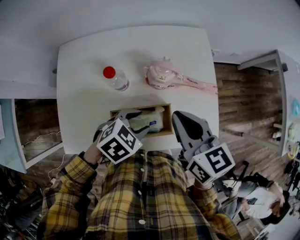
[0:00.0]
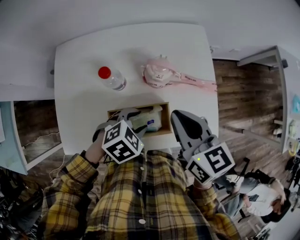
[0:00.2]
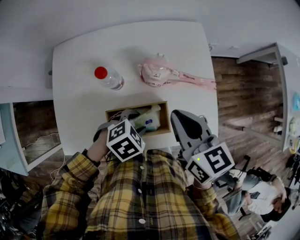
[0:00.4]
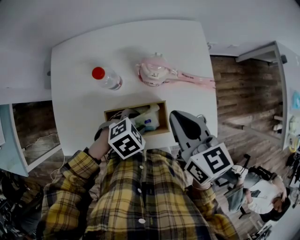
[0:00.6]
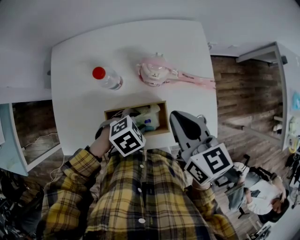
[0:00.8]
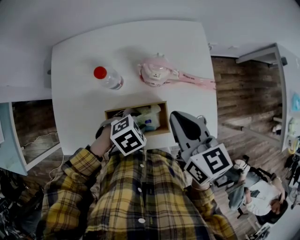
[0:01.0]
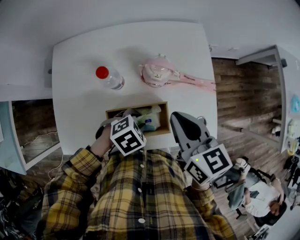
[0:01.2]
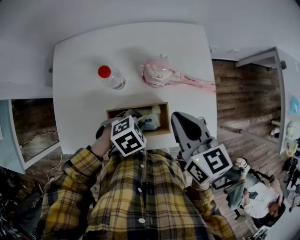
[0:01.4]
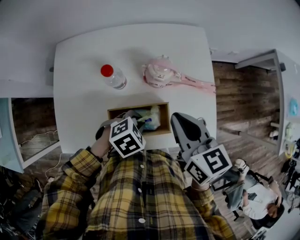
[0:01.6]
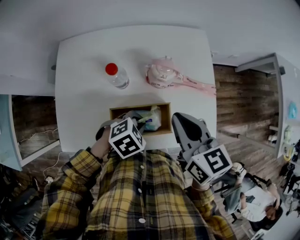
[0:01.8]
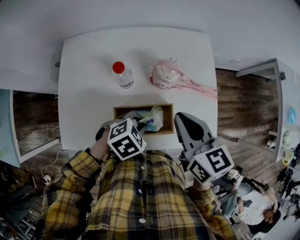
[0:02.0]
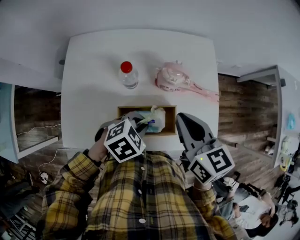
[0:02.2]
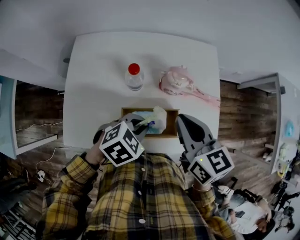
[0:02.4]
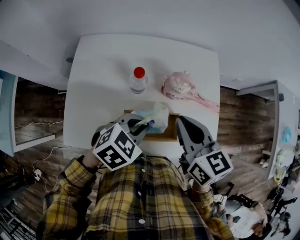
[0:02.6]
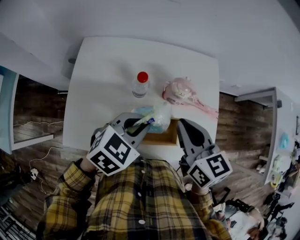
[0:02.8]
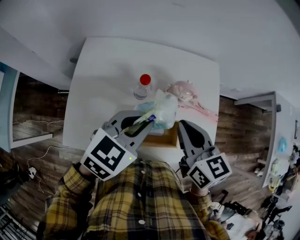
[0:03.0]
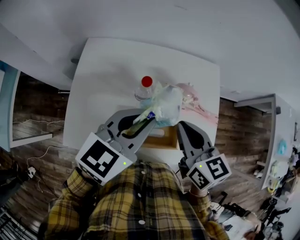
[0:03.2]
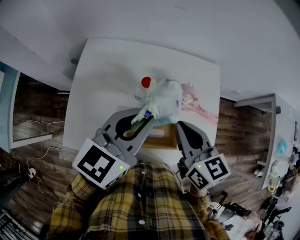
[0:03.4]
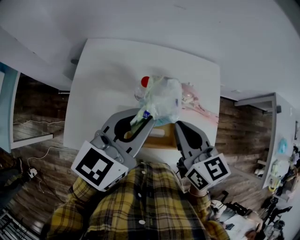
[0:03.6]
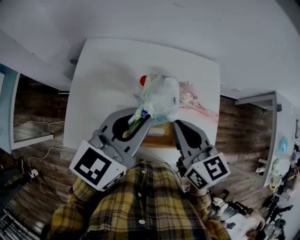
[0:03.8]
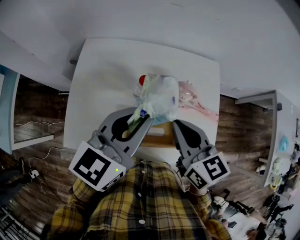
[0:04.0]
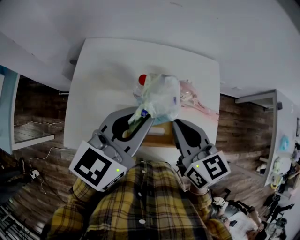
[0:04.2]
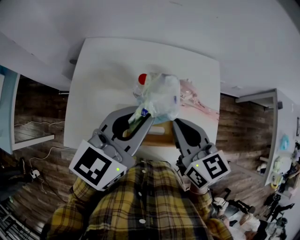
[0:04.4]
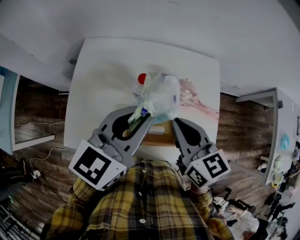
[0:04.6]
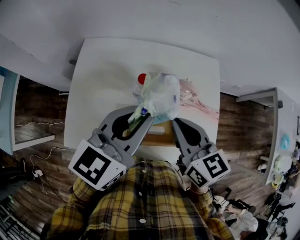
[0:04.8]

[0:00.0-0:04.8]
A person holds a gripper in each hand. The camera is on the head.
0:00.0 to 0:01.6: The left gripper goes approximately 5 cm downward, and closes up.
0:01.6 to 0:03.2: The right gripper is displaced to the left by about 5 cm. Meanwhile the left gripper travels upward by about 25 cm, and tips its fingers upward by approximately 50 degrees.
0:03.2 to 0:04.8: The grippers make only small movements.

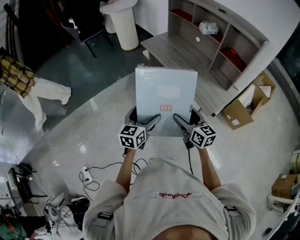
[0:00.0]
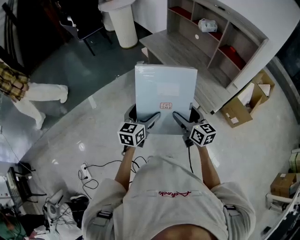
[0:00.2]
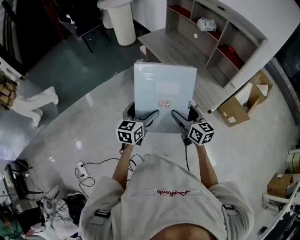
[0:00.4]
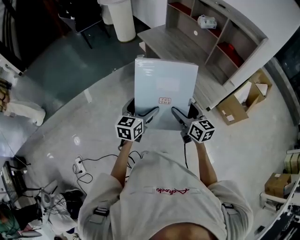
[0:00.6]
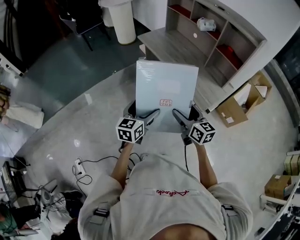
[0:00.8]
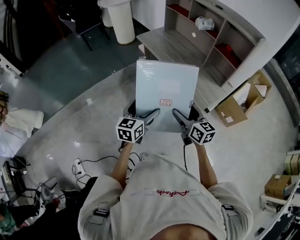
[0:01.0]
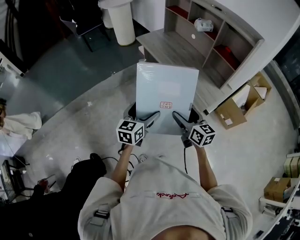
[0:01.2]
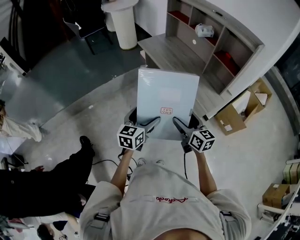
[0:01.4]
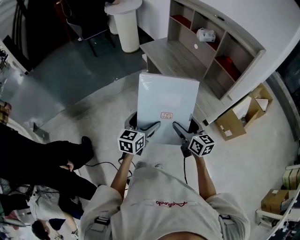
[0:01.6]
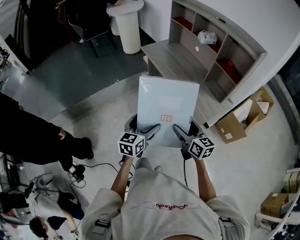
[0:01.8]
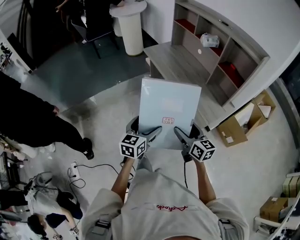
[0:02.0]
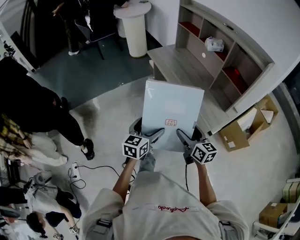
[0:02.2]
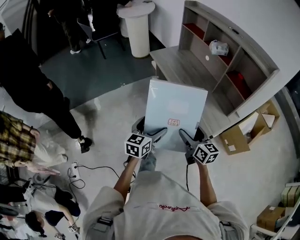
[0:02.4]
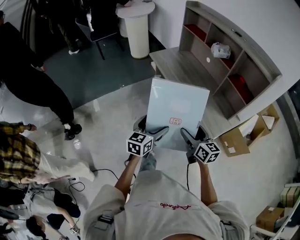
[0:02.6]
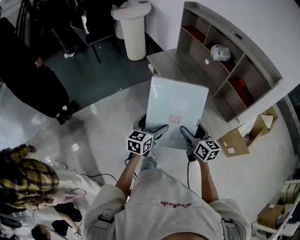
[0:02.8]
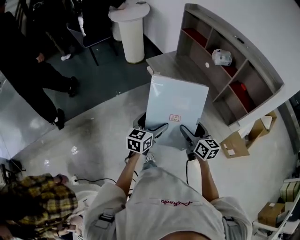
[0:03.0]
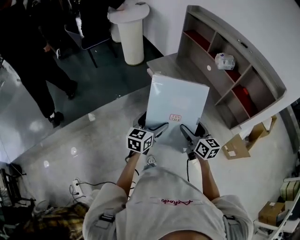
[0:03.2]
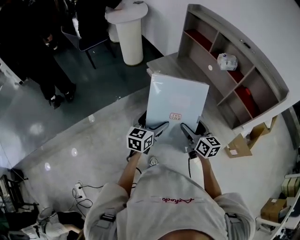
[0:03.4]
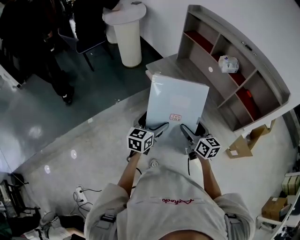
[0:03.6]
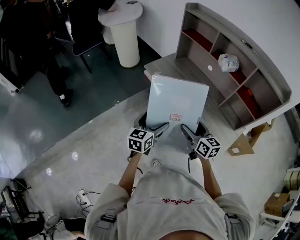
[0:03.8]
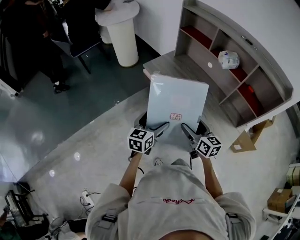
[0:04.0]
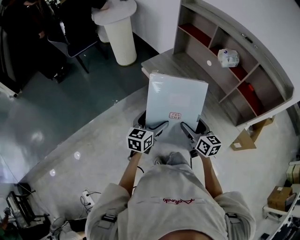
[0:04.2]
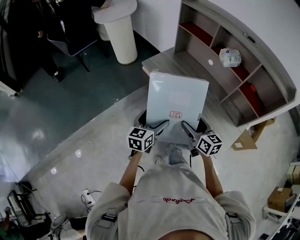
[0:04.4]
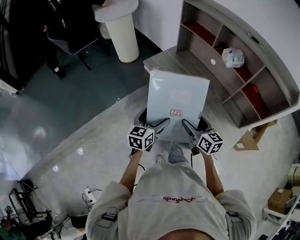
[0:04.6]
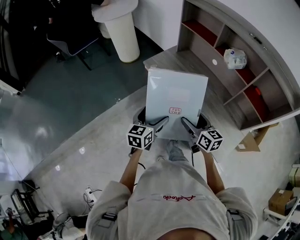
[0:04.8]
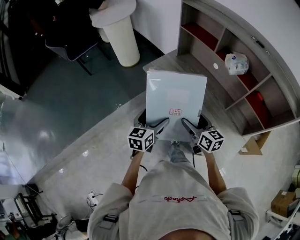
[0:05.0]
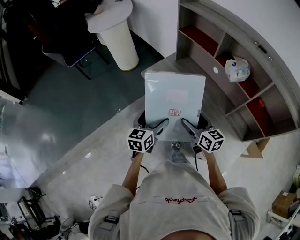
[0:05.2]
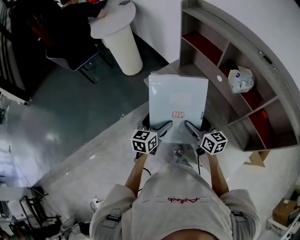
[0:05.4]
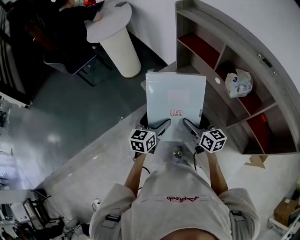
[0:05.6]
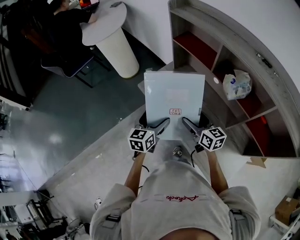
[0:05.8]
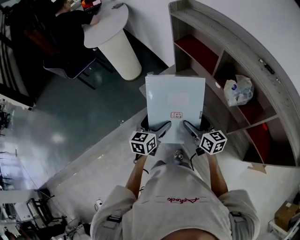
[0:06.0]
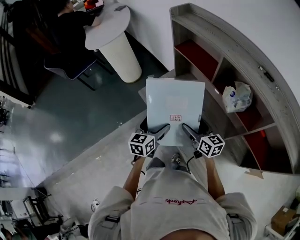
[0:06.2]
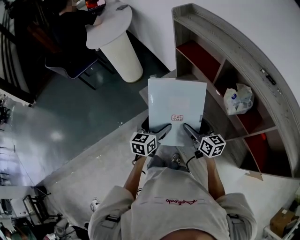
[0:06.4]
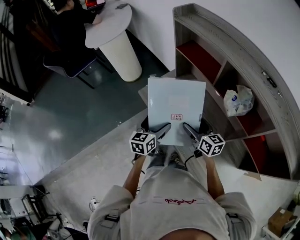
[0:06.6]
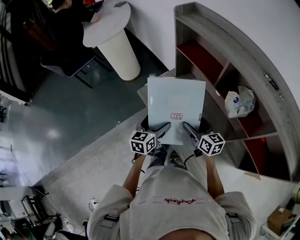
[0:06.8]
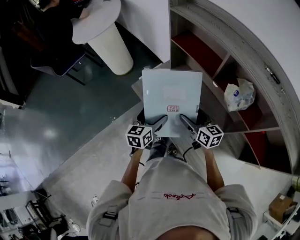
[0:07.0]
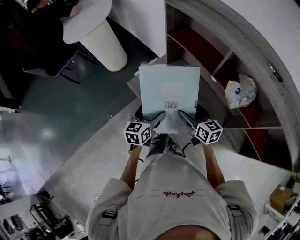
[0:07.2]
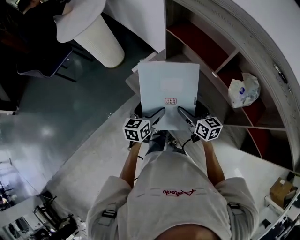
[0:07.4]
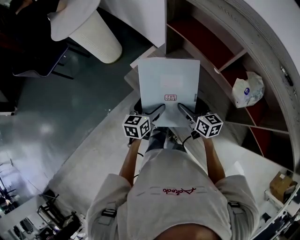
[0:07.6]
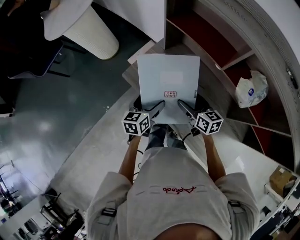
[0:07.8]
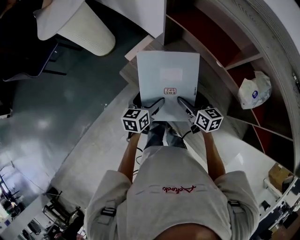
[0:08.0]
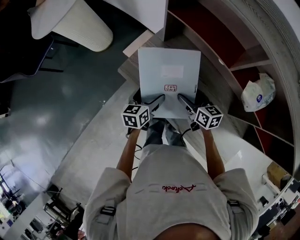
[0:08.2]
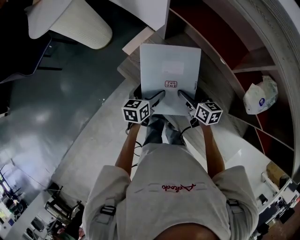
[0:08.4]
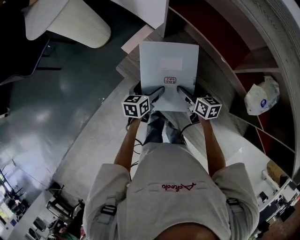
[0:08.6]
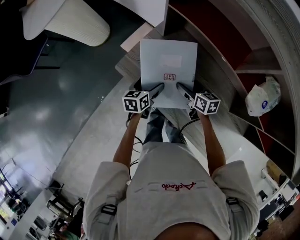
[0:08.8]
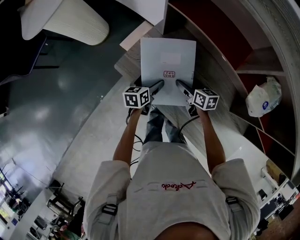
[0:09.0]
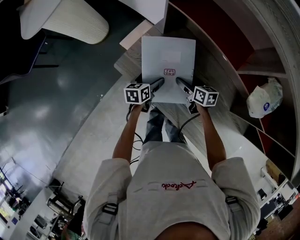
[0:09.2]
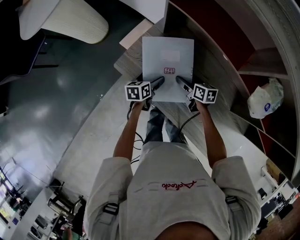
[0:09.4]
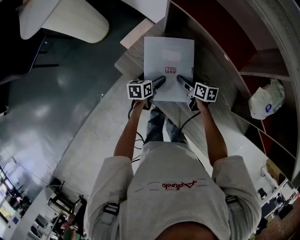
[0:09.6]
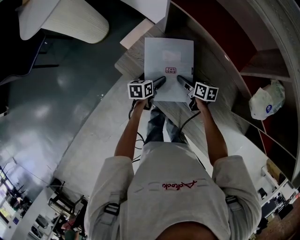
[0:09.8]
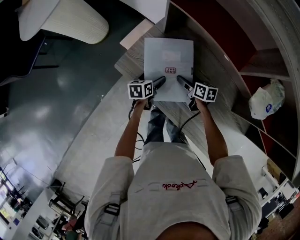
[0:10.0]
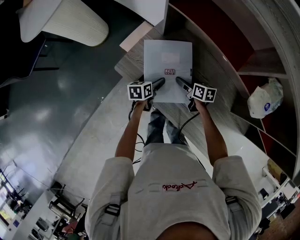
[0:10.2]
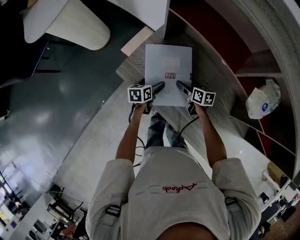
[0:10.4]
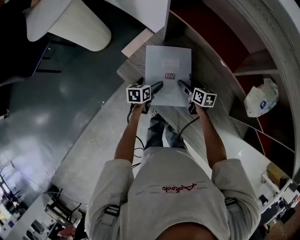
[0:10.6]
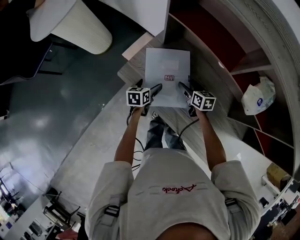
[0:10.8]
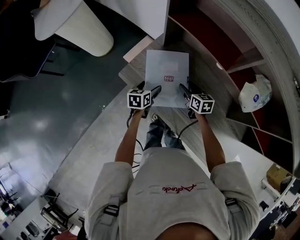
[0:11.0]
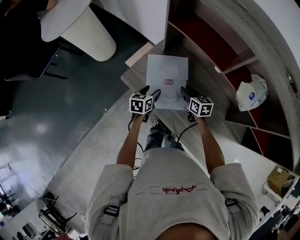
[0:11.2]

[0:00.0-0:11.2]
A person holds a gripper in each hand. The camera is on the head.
0:00.0 to 0:01.6: Both grippers move to the right, roughly 5 cm.
0:01.6 to 0:03.2: The grippers both shift forward by roughly 25 cm.
0:03.2 to 0:04.8: The grippers both shift forward by approximately 15 cm.
0:04.8 to 0:06.4: The right gripper goes some 25 cm forward, while the left gripper goes some 25 cm forward and to the right.
0:06.4 to 0:08.0: Both grippers move forward and downward, some 15 cm.
0:08.0 to 0:09.6: Both grippers move downward and forward, some 20 cm. The right gripper turns by some 20 degrees.
0:09.6 to 0:11.2: The grippers both shift upward by approximately 10 cm. The left gripper closes its fingers; the right gripper changes its angle by some 20 degrees, and closes its fingers.

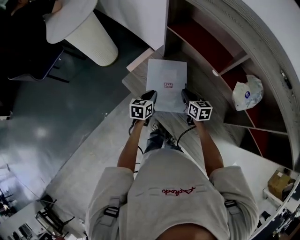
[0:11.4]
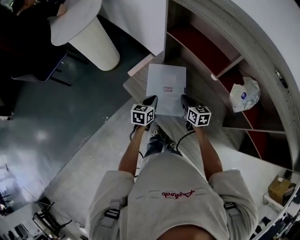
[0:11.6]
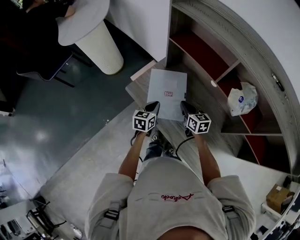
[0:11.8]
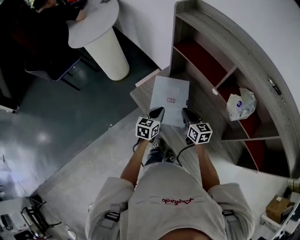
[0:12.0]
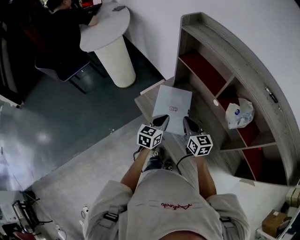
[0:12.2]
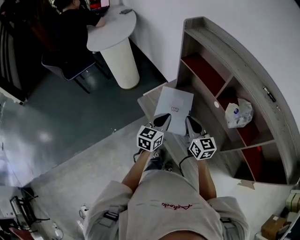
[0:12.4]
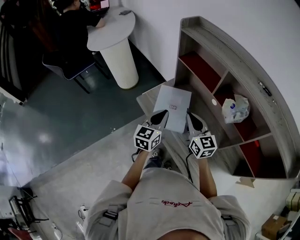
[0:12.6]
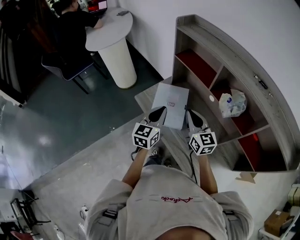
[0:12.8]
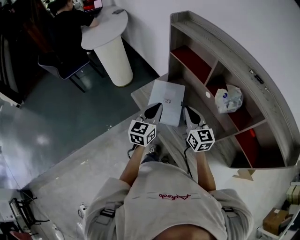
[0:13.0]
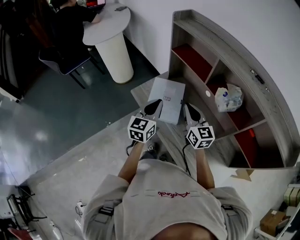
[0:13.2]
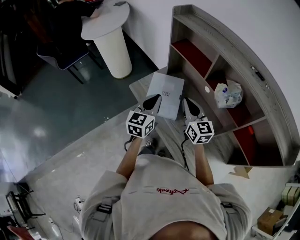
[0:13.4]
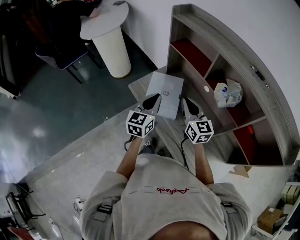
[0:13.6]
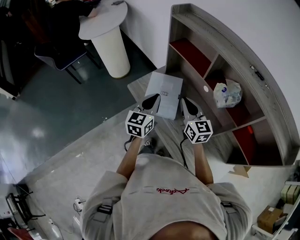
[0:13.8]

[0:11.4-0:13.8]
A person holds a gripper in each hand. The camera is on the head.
0:11.4 to 0:12.6: Both grippers move upward and backward, approximately 25 cm. The right gripper swivels about 30 degrees. The left gripper rotates some 30 degrees.
0:12.6 to 0:13.8: There are only small adjustments of the grippers.

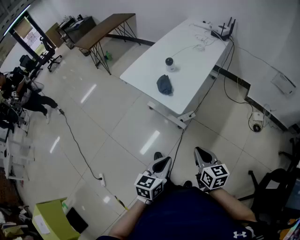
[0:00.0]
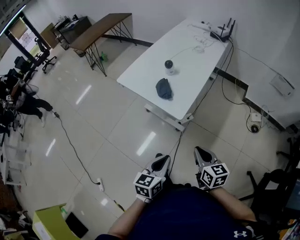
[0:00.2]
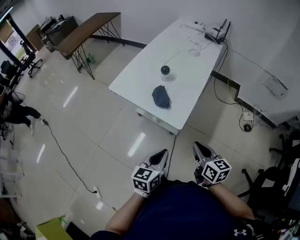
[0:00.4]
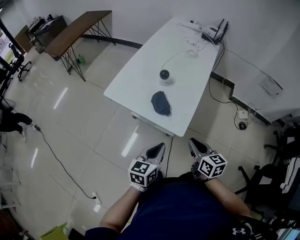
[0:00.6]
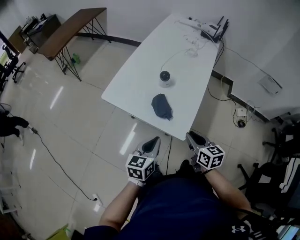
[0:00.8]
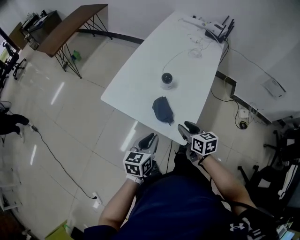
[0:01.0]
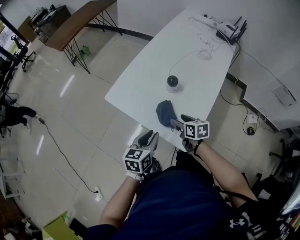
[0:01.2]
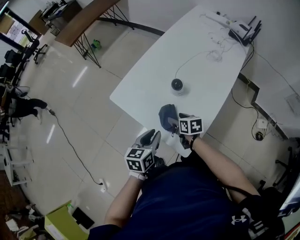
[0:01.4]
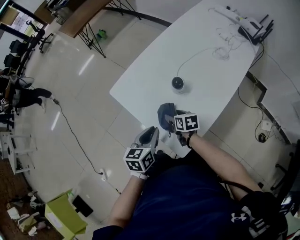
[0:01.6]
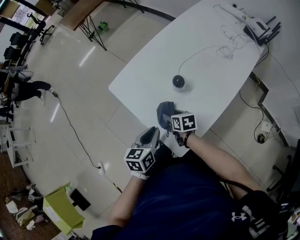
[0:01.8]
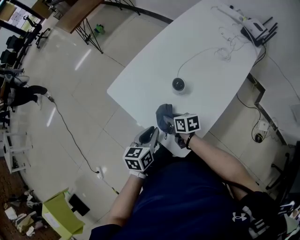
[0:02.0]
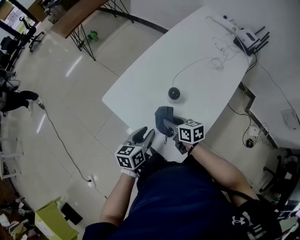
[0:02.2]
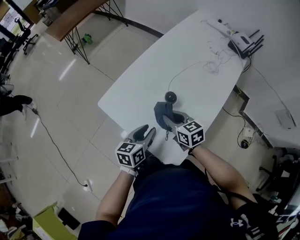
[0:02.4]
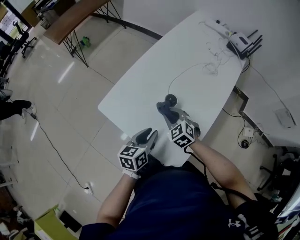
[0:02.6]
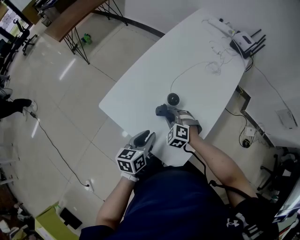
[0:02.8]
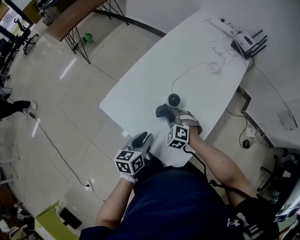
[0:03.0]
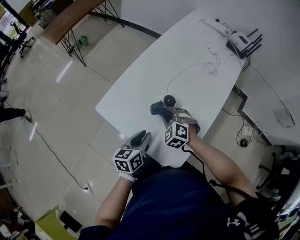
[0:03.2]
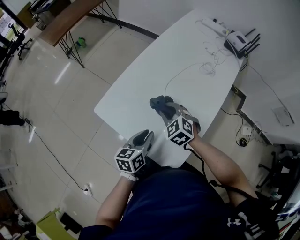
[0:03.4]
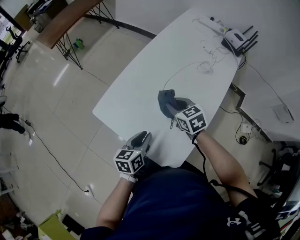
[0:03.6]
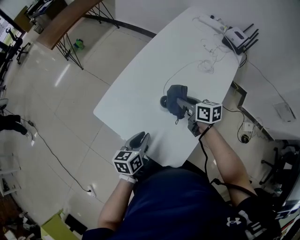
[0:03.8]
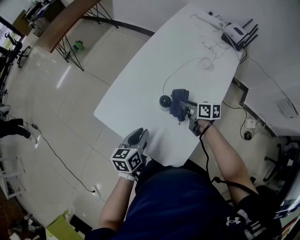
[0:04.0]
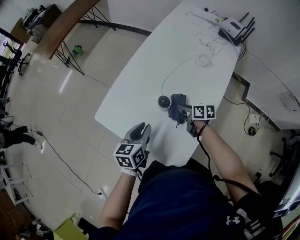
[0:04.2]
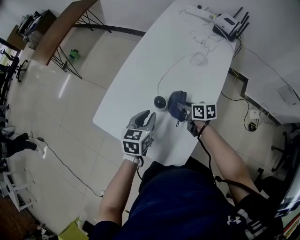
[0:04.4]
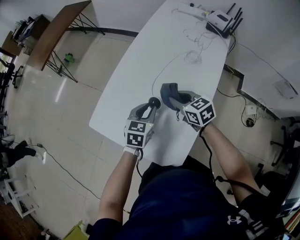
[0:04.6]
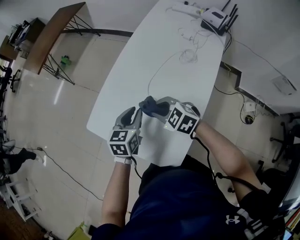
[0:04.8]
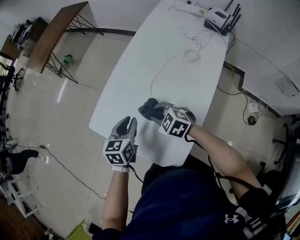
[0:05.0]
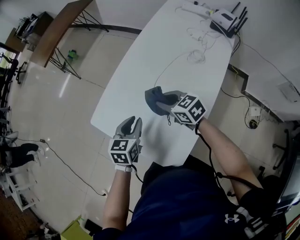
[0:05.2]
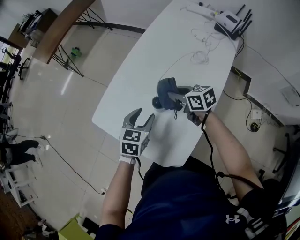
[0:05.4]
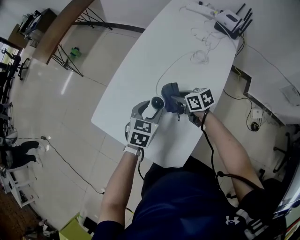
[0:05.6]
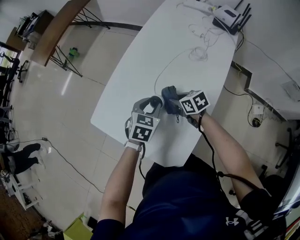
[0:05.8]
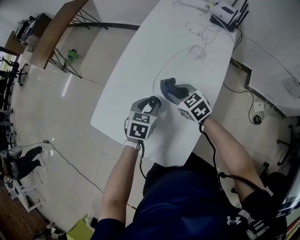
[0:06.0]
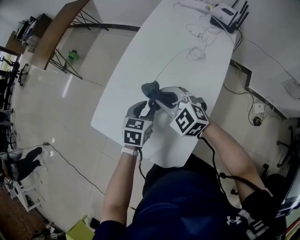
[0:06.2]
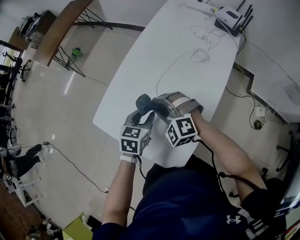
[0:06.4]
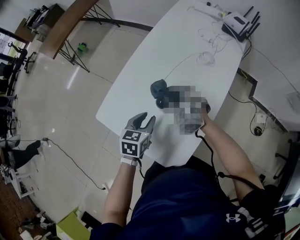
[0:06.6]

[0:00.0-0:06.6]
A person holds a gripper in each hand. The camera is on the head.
0:00.0 to 0:01.6: The two grippers travel together, some 40 cm. The right gripper changes its angle by about 30 degrees, and opens up.
0:01.6 to 0:03.2: The right gripper swings up and down, roughly 15 cm each way, with 2 reversals, twists approximately 70 degrees counterclockwise, seen from behind, and closes up; the left gripper moves forward, approximately 5 cm.
0:03.2 to 0:05.0: The right gripper moves about 15 cm to the right and comes back, and changes its angle by roughly 30 degrees. Meanwhile the left gripper shifts roughly 10 cm forward.
0:05.0 to 0:06.6: The right gripper swings up and down, about 15 cm each way, with 2 reversals, and swivels approximately 30 degrees.
